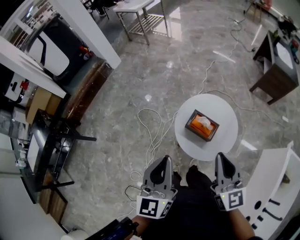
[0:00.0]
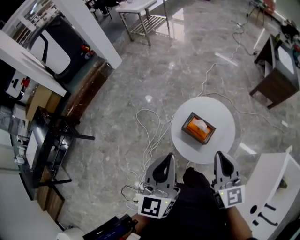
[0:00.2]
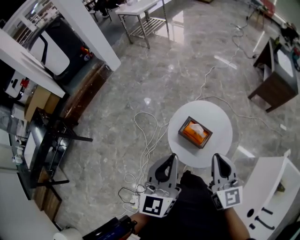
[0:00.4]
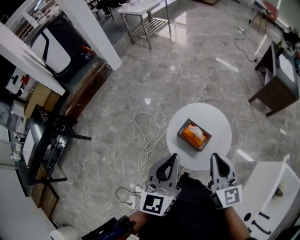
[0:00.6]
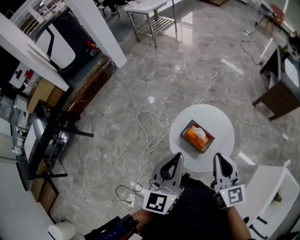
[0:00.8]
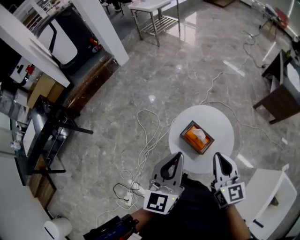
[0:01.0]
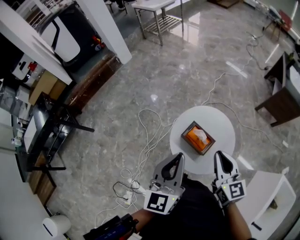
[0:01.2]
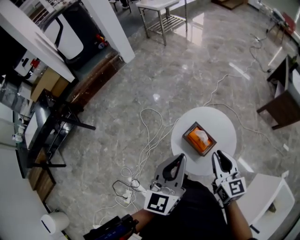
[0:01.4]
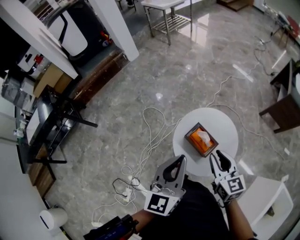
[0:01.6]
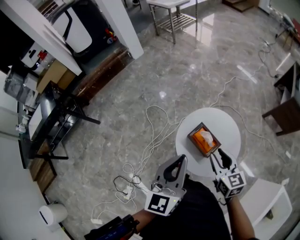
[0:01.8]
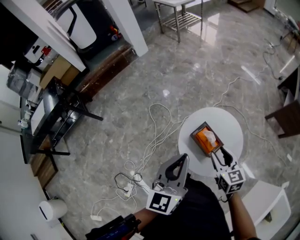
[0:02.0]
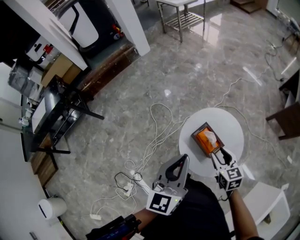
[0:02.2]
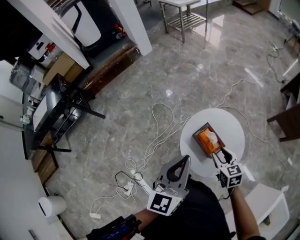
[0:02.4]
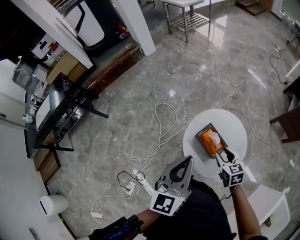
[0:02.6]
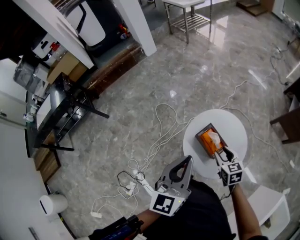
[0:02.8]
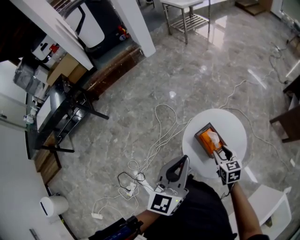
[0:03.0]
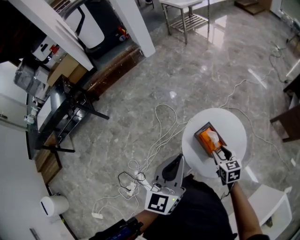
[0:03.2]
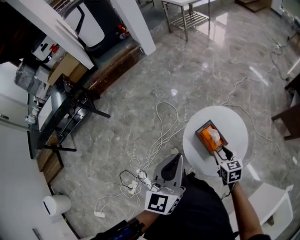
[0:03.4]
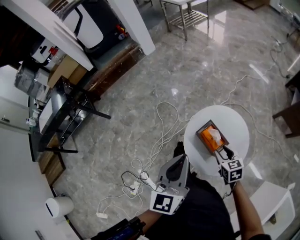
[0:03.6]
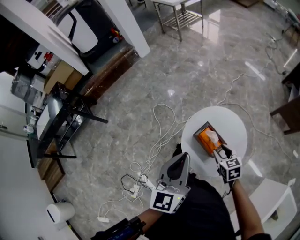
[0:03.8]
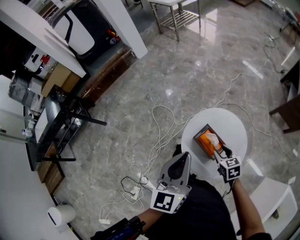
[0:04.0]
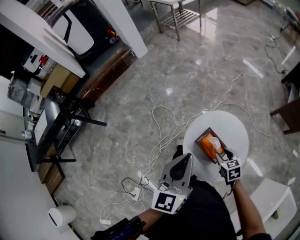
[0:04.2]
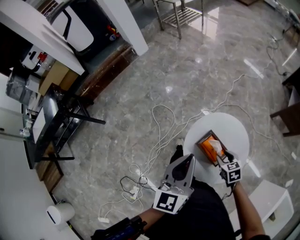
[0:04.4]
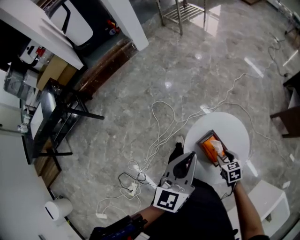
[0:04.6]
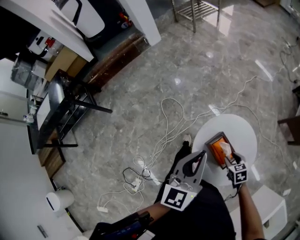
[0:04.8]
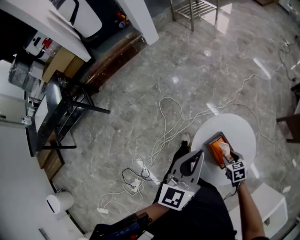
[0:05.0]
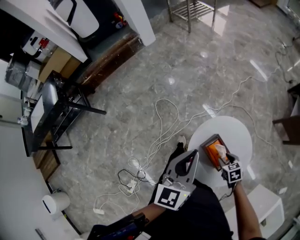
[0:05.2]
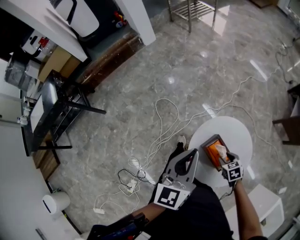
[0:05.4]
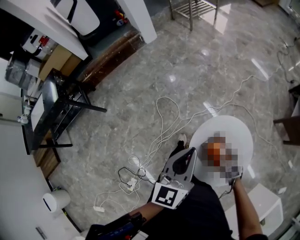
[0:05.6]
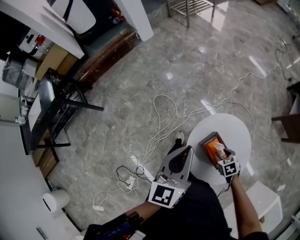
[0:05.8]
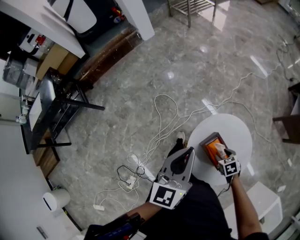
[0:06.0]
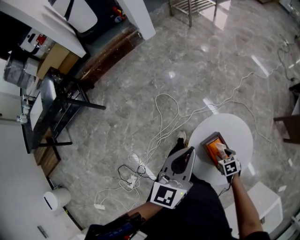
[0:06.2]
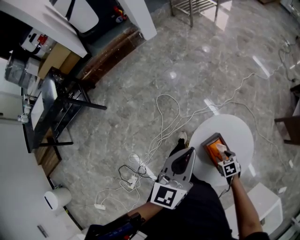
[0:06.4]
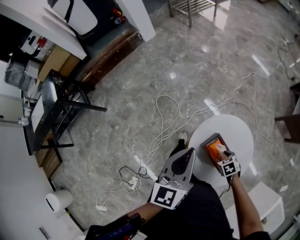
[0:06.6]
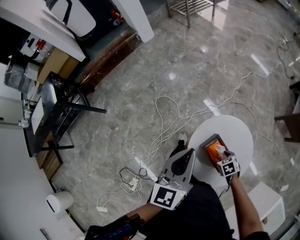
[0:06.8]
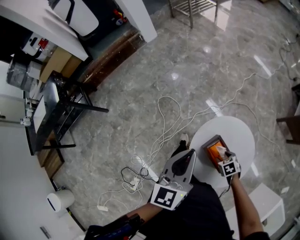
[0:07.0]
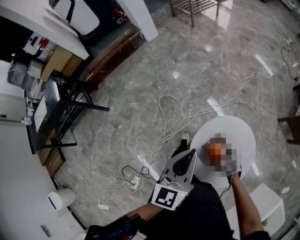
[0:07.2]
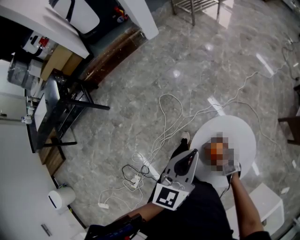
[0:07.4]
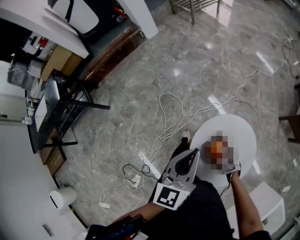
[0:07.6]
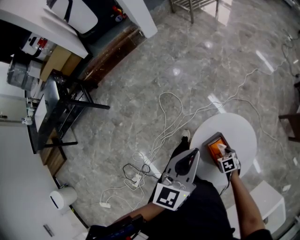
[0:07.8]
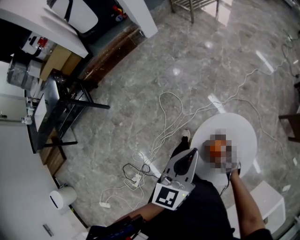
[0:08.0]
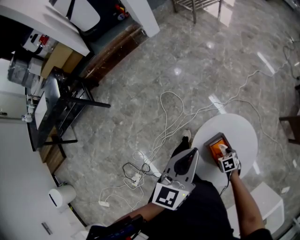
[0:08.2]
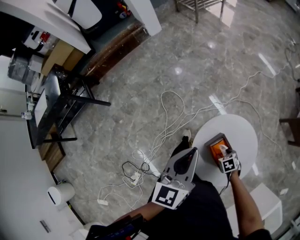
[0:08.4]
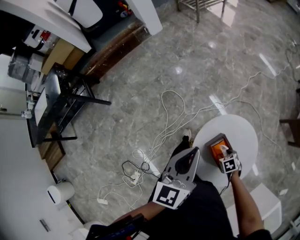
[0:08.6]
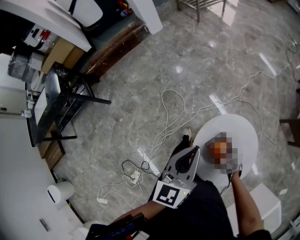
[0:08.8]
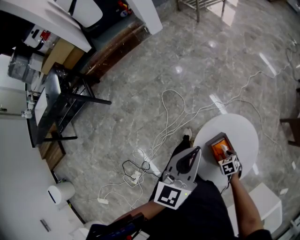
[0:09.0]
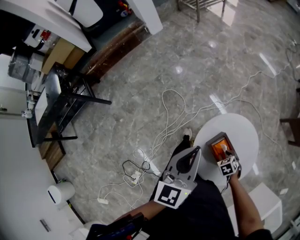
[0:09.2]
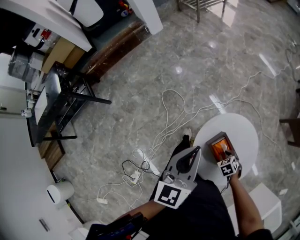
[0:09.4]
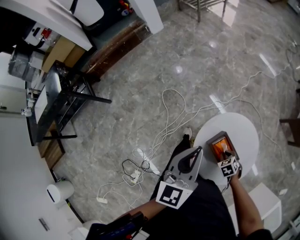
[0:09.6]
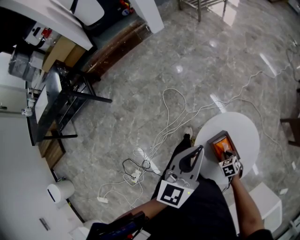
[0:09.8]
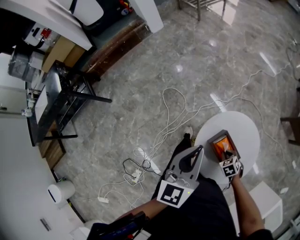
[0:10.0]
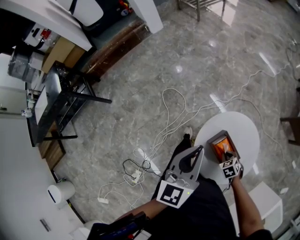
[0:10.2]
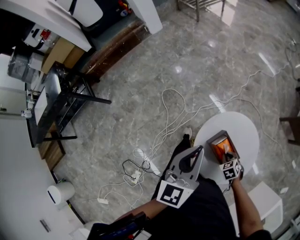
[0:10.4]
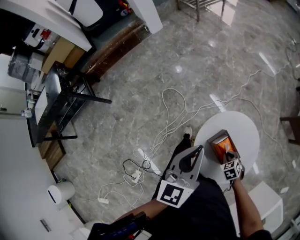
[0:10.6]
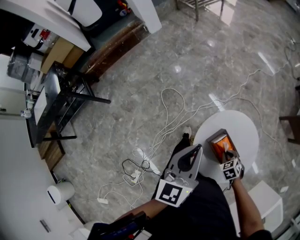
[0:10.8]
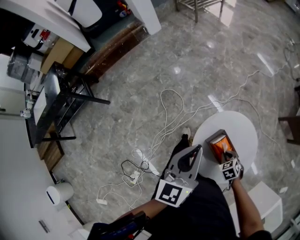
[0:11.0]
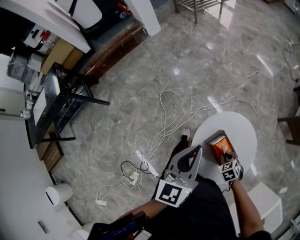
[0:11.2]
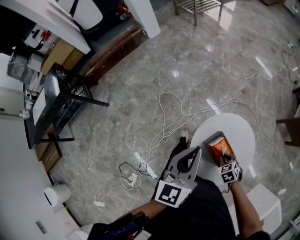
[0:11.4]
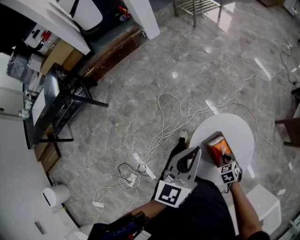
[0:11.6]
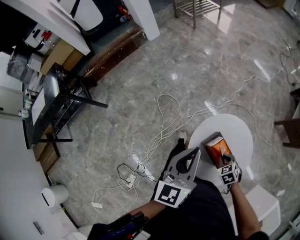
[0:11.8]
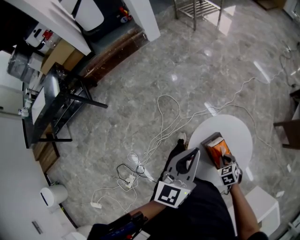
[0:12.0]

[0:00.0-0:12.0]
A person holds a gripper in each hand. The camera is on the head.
0:00.0 to 0:01.6: The right gripper is displaced downward and forward by some 15 cm, and swivels roughly 20 degrees. The left gripper travels to the right by about 10 cm.
0:01.6 to 0:03.0: The right gripper heads downward, covering roughly 15 cm, and swivels approximately 20 degrees.
0:03.0 to 0:04.4: The left gripper moves forward, about 10 cm. Meanwhile the right gripper heads downward, covering roughly 5 cm.
0:04.4 to 0:06.0: The right gripper goes some 5 cm downward; the left gripper travels forward by roughly 5 cm.
0:06.0 to 0:09.0: The grippers stay close to where they were, moving slightly.
0:09.0 to 0:10.4: The right gripper closes.
0:10.4 to 0:12.0: The right gripper moves upward, some 5 cm.

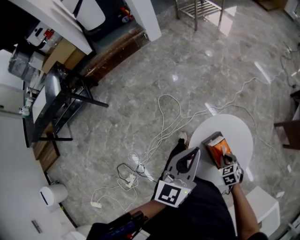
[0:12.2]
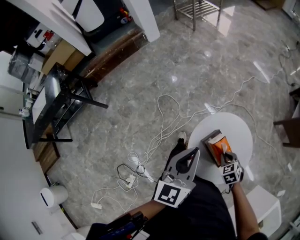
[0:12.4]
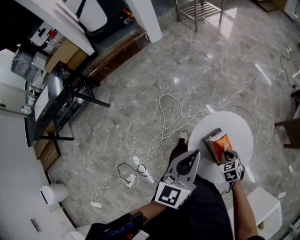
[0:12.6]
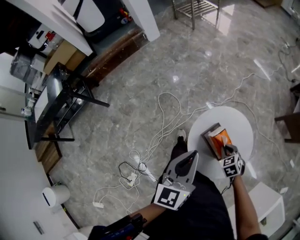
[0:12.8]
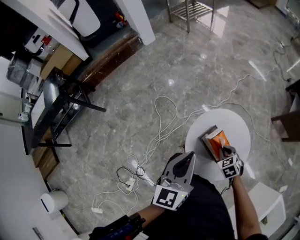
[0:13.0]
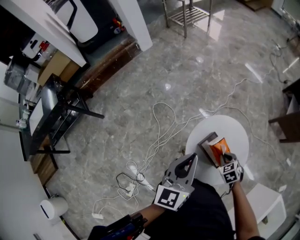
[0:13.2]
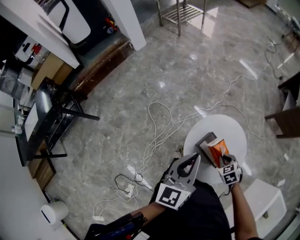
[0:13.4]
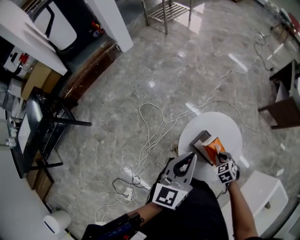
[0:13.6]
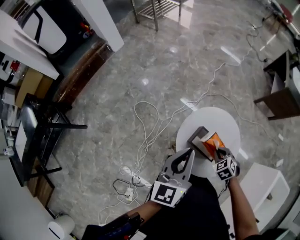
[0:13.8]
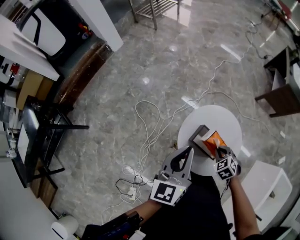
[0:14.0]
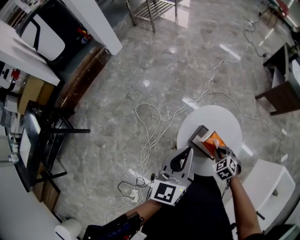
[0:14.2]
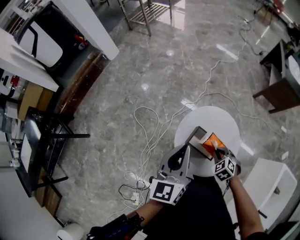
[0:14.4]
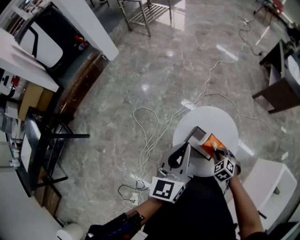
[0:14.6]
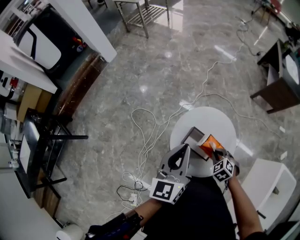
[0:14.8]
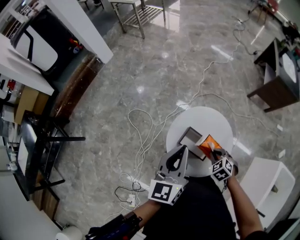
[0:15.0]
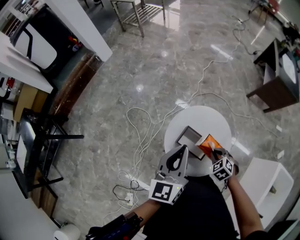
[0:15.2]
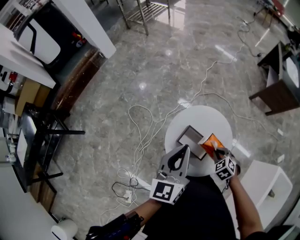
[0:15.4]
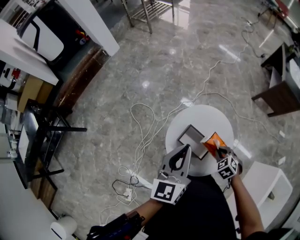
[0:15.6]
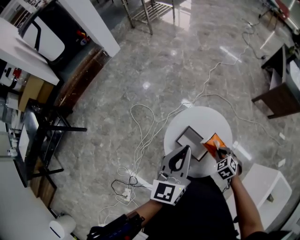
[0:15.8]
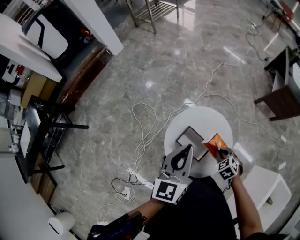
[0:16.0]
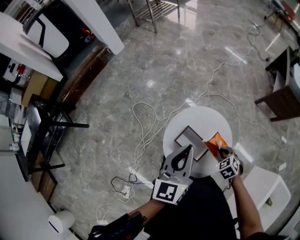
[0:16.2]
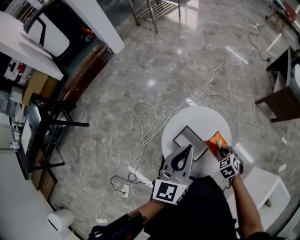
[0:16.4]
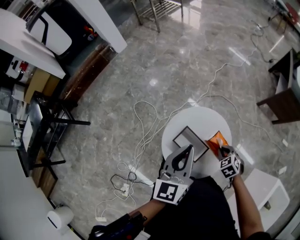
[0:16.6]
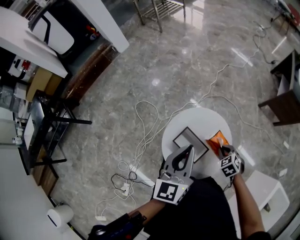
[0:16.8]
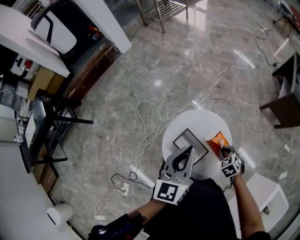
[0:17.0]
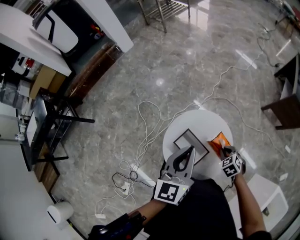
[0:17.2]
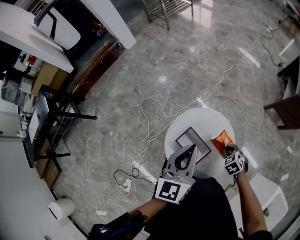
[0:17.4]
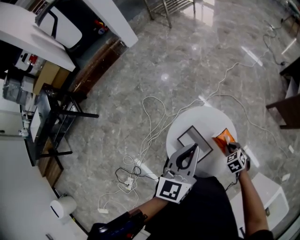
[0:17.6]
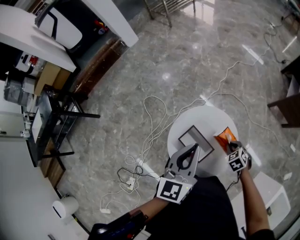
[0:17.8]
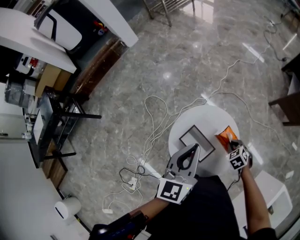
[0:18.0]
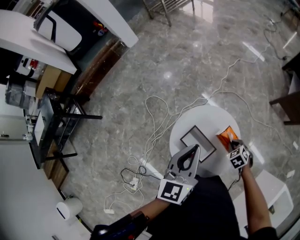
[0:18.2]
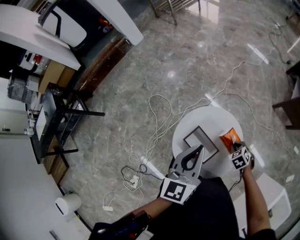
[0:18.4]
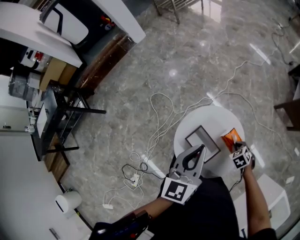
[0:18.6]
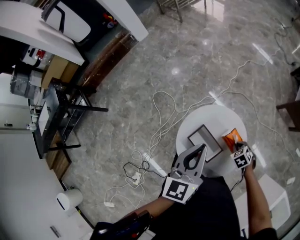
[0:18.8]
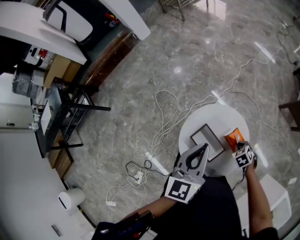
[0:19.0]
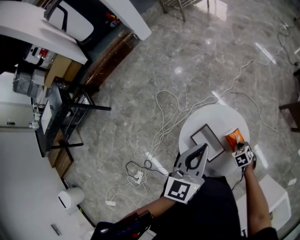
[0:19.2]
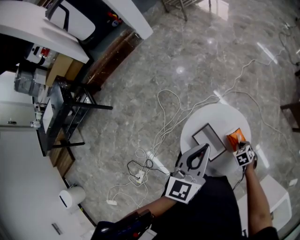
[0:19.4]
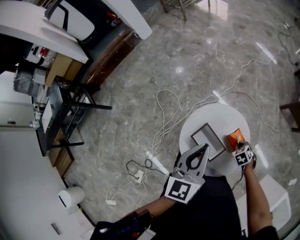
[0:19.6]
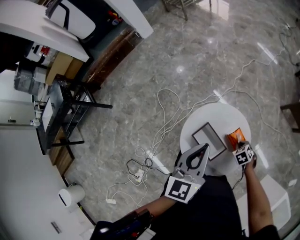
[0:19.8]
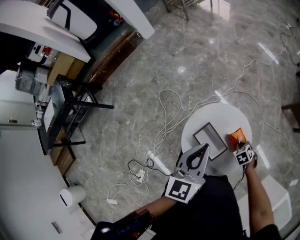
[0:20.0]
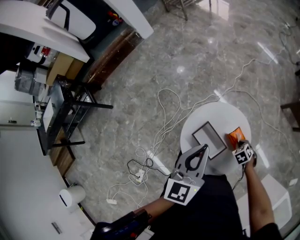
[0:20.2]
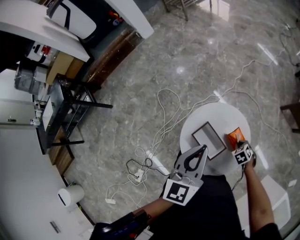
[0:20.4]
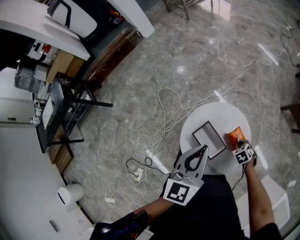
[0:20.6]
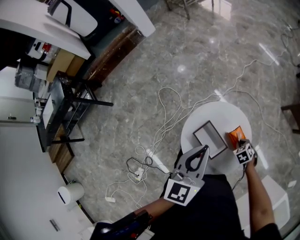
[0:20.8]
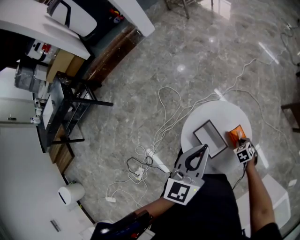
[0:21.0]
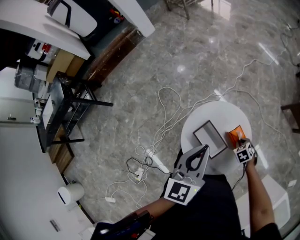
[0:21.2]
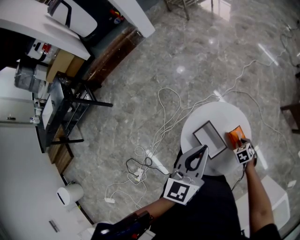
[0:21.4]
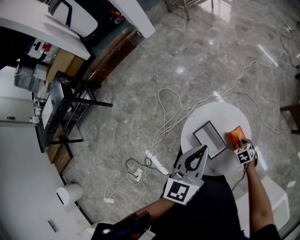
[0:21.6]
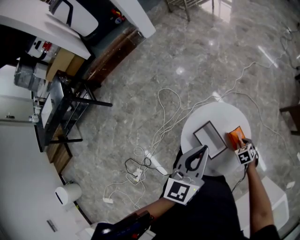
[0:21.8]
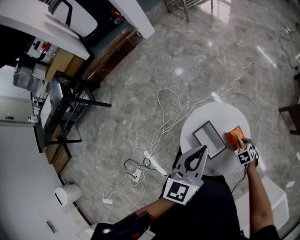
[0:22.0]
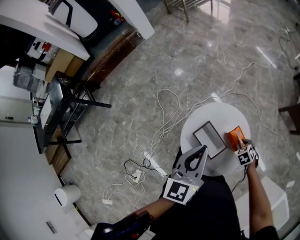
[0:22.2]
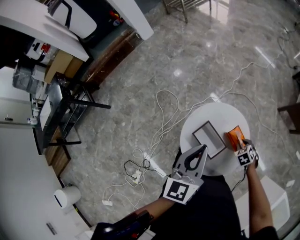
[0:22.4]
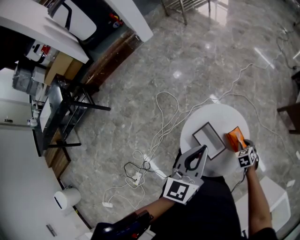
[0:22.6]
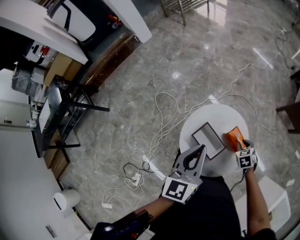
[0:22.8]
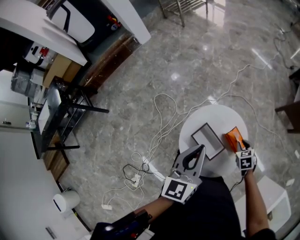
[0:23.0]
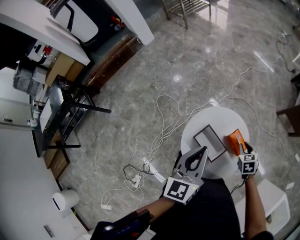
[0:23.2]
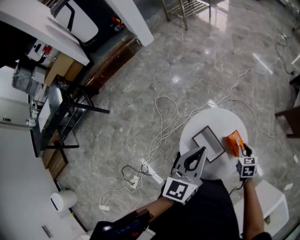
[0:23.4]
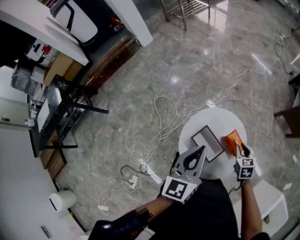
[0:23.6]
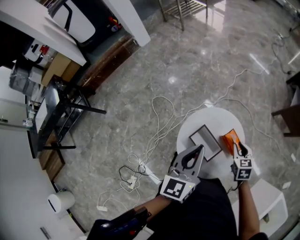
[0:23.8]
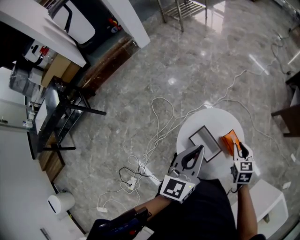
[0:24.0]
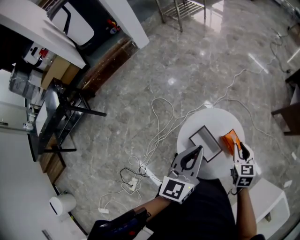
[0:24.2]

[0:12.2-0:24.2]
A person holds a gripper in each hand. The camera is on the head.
0:12.2 to 0:13.8: The grippers move only a little.
0:13.8 to 0:15.2: The two grippers go roughly 5 cm to the right.
0:15.2 to 0:16.6: The two grippers go some 5 cm to the right.
0:16.6 to 0:18.2: The right gripper goes approximately 5 cm downward.
0:18.2 to 0:19.8: The right gripper is displaced downward by approximately 5 cm.
0:19.8 to 0:22.6: The grippers move only a little.
0:22.6 to 0:24.2: The right gripper moves upward and to the left, approximately 20 cm, and swivels about 40 degrees.
